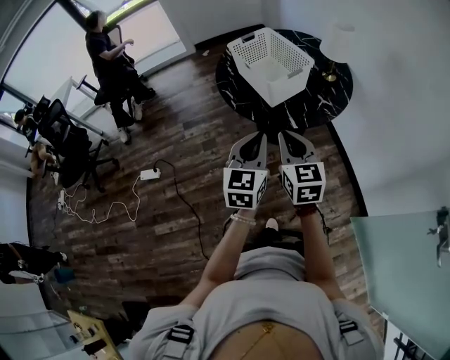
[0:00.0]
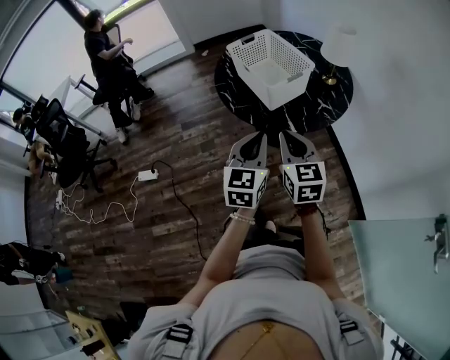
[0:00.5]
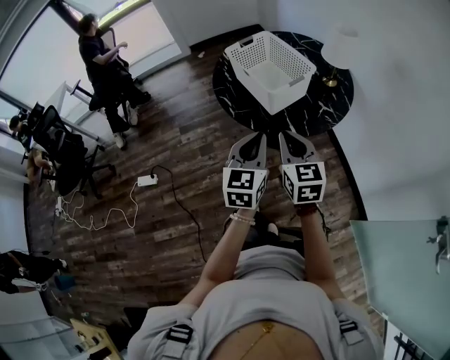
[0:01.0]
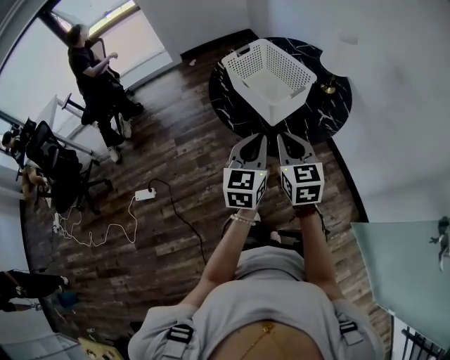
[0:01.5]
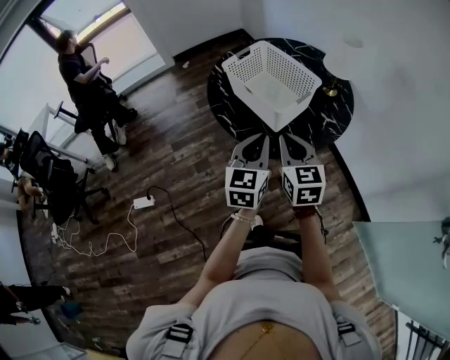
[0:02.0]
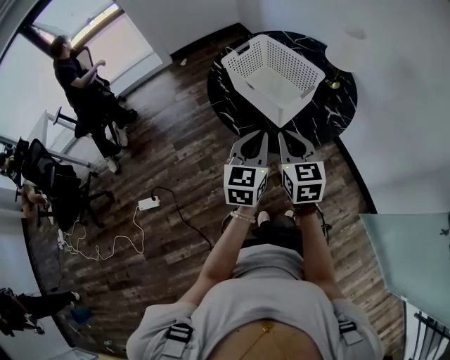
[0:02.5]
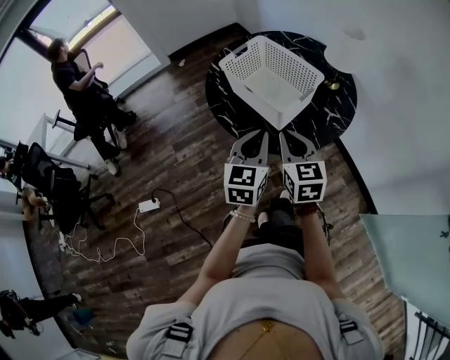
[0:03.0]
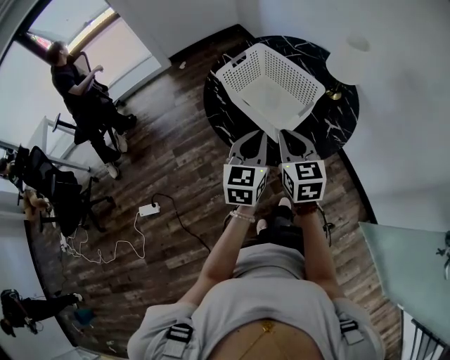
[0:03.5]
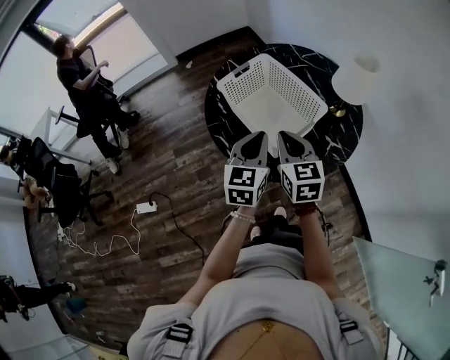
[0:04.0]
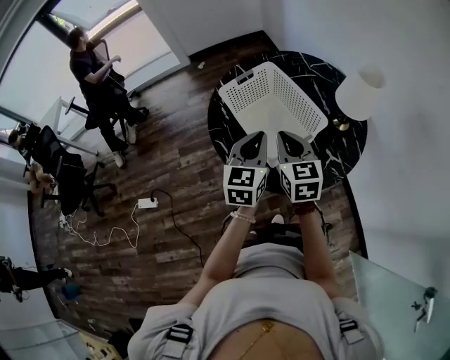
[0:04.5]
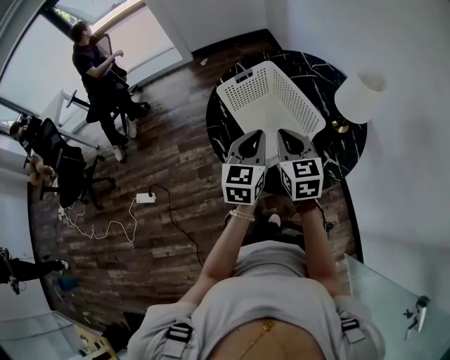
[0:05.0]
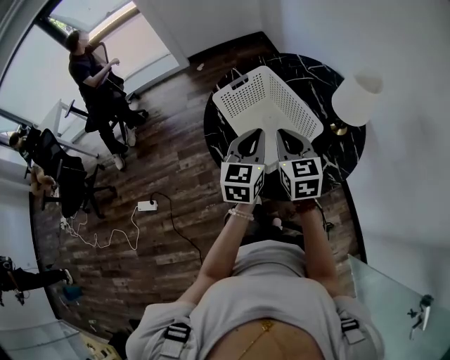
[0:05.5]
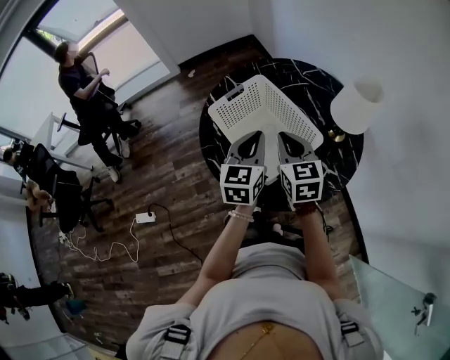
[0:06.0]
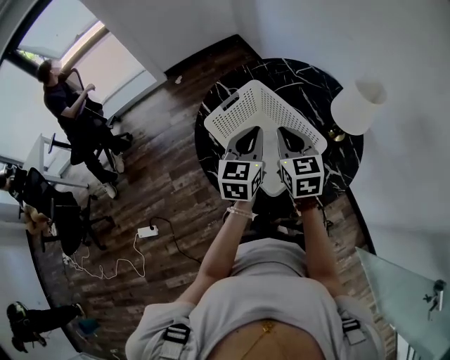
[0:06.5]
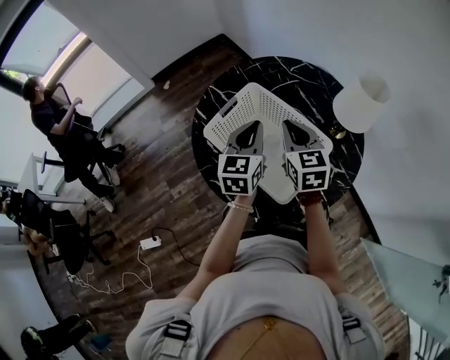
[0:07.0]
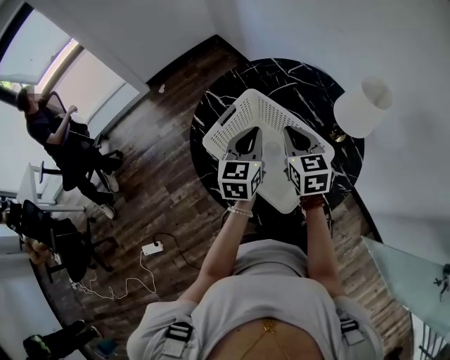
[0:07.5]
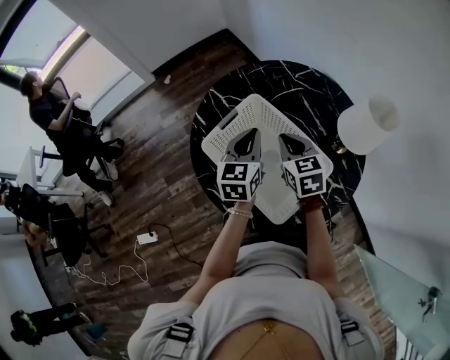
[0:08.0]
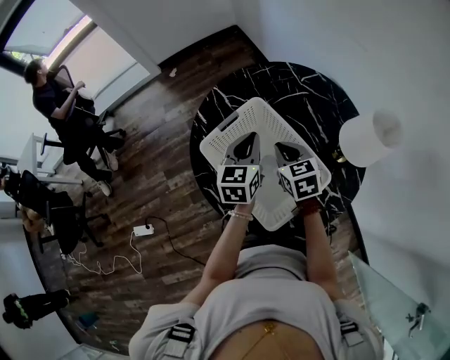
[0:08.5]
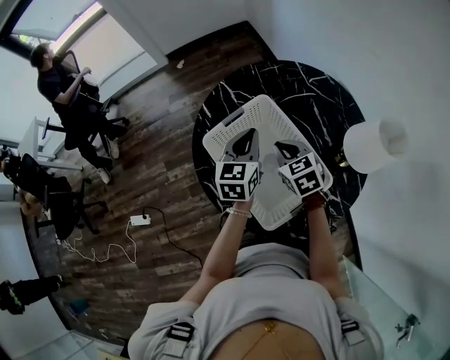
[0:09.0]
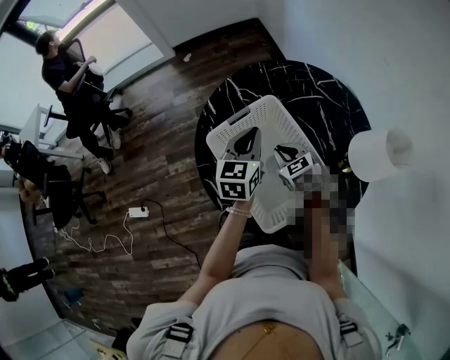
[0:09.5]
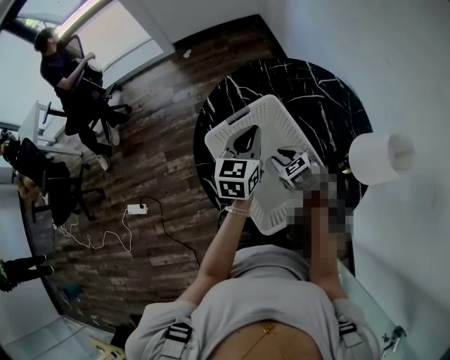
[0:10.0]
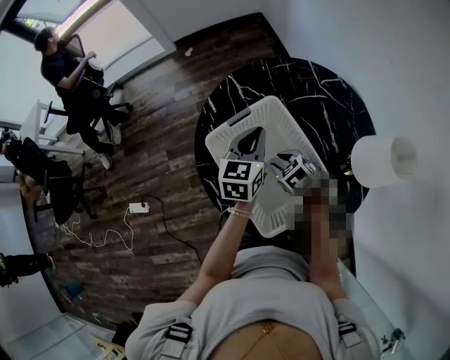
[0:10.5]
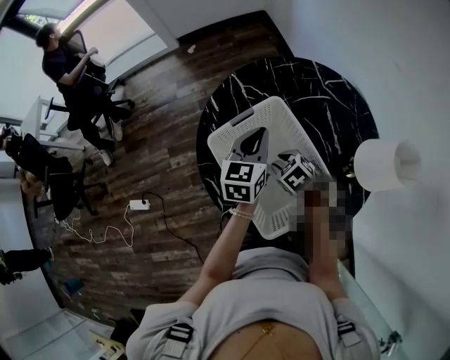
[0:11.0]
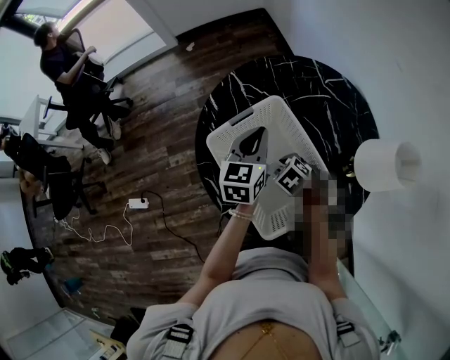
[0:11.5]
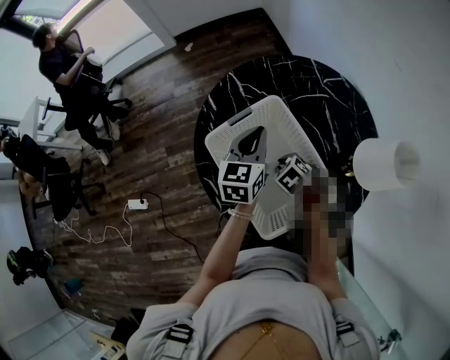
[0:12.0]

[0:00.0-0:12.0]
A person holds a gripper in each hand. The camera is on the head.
0:00.0 to 0:02.0: Both grippers move forward, approximately 15 cm.
0:02.0 to 0:04.0: The two grippers go roughly 15 cm forward.
0:04.0 to 0:06.0: Both grippers move forward, approximately 10 cm.
0:06.0 to 0:08.0: The right gripper is displaced forward and downward by some 15 cm. The left gripper shifts roughly 15 cm forward.
0:08.0 to 0:10.0: The right gripper moves downward, about 10 cm, and rotates approximately 40 degrees.
0:10.0 to 0:12.0: The right gripper moves downward, approximately 5 cm.

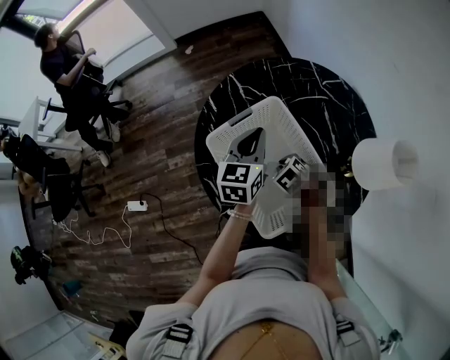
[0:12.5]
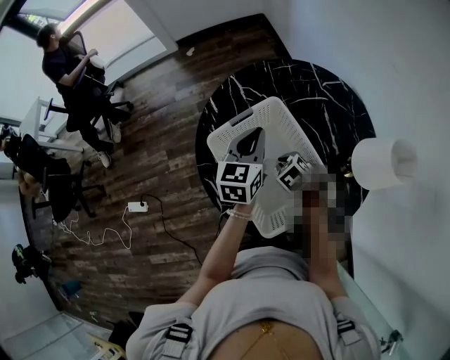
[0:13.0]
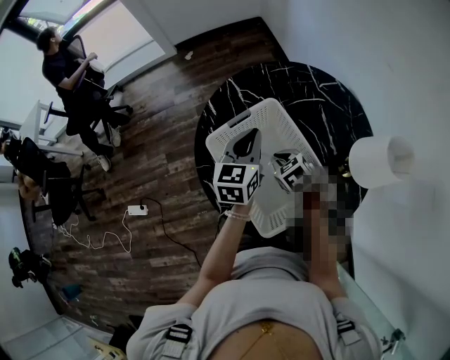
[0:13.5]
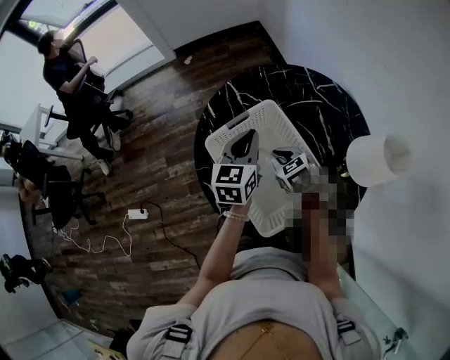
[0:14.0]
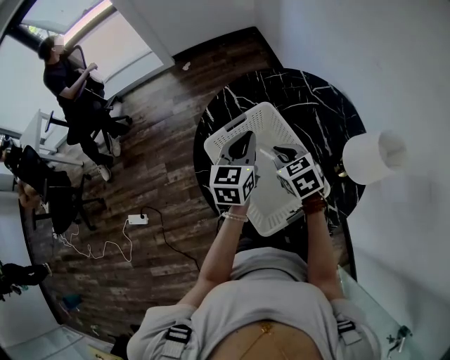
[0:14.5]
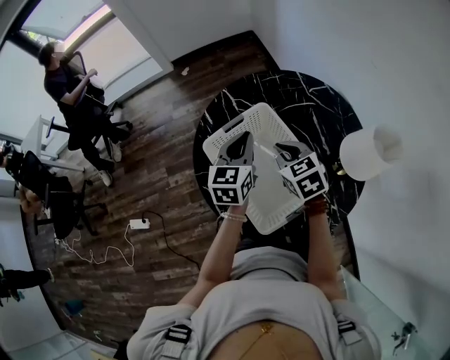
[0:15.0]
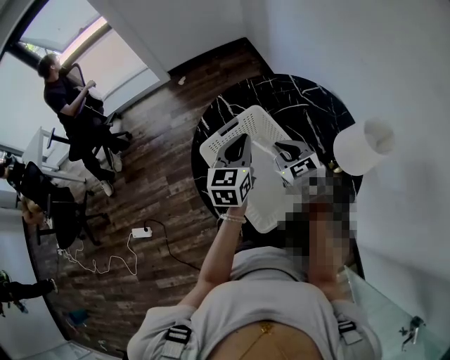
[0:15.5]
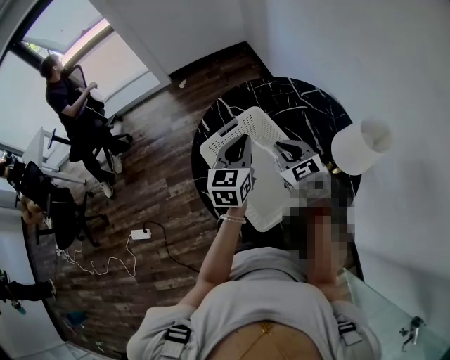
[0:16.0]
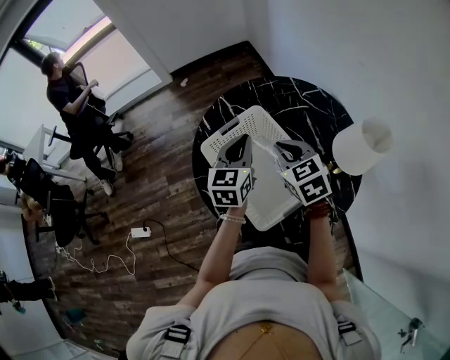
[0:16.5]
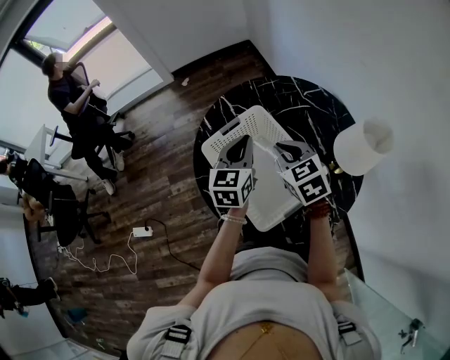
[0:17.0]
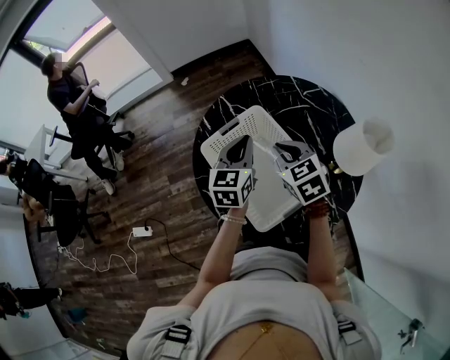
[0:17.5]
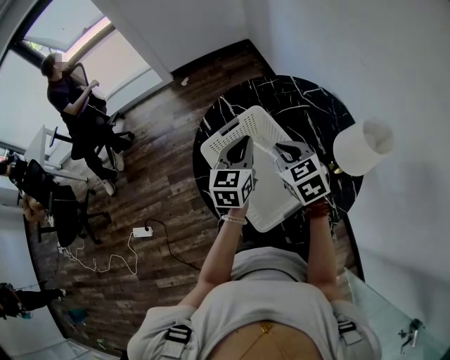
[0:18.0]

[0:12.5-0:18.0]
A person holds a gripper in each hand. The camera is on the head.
0:12.5 to 0:14.5: The right gripper is displaced upward by some 15 cm, and turns by roughly 30 degrees.
0:14.5 to 0:16.0: The right gripper goes approximately 10 cm upward.
0:16.0 to 0:18.0: Both grippers stay put.

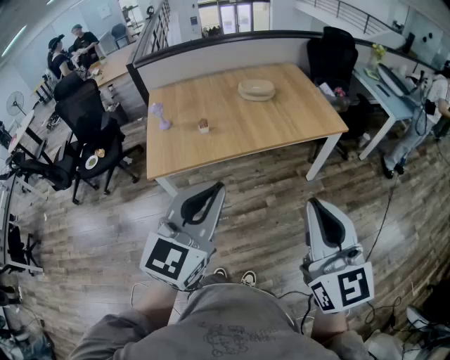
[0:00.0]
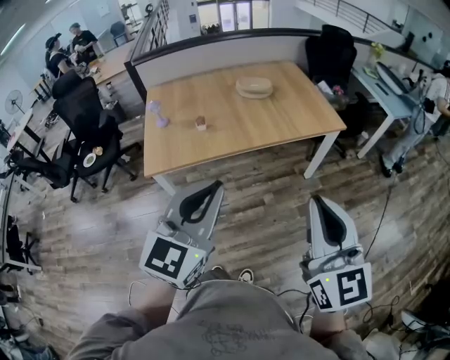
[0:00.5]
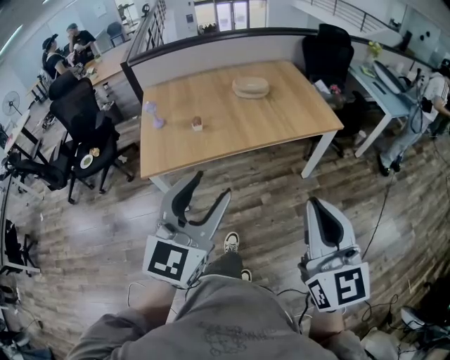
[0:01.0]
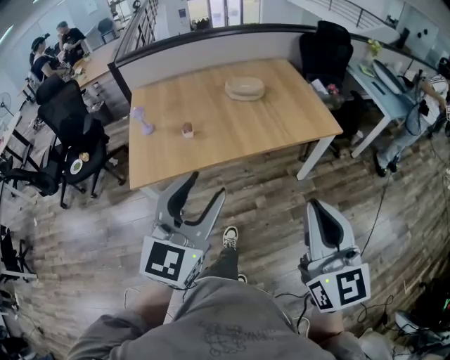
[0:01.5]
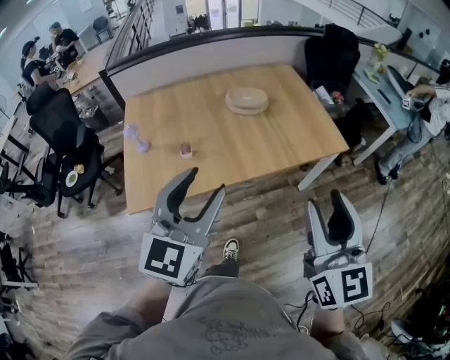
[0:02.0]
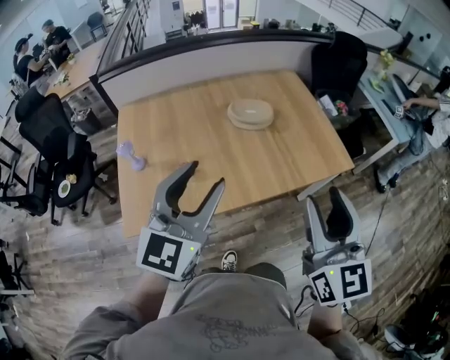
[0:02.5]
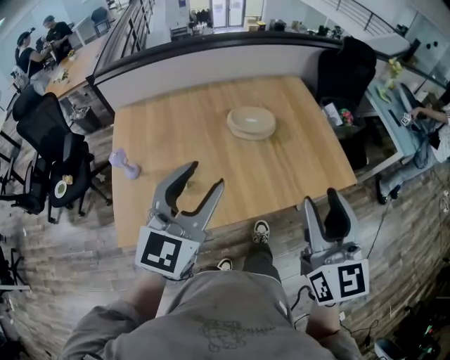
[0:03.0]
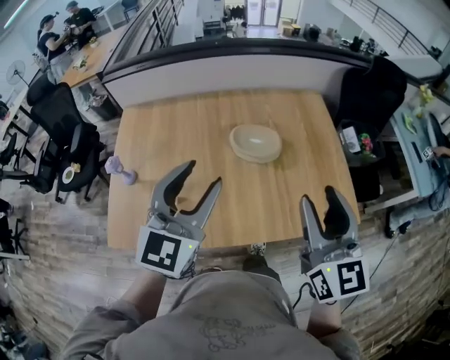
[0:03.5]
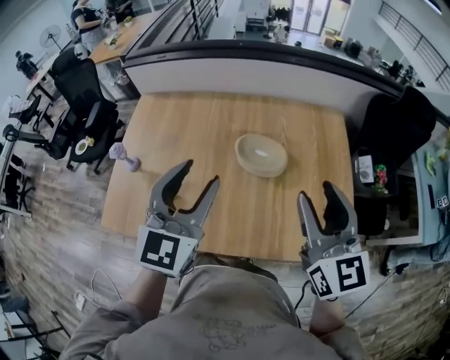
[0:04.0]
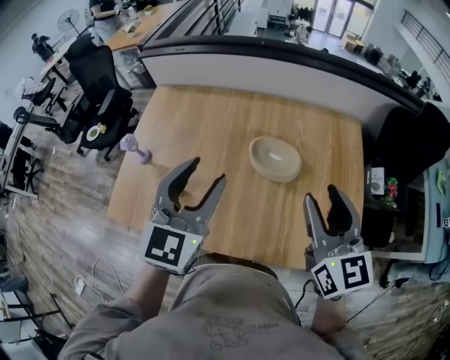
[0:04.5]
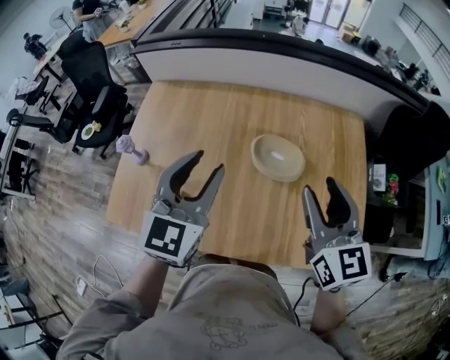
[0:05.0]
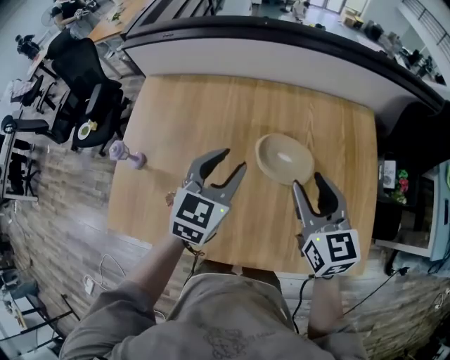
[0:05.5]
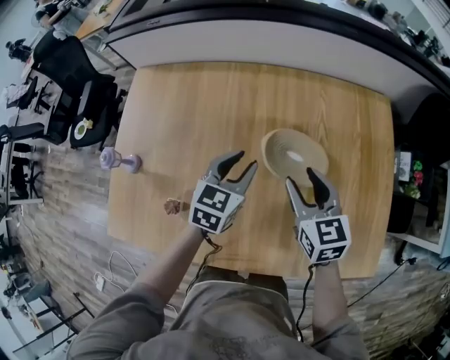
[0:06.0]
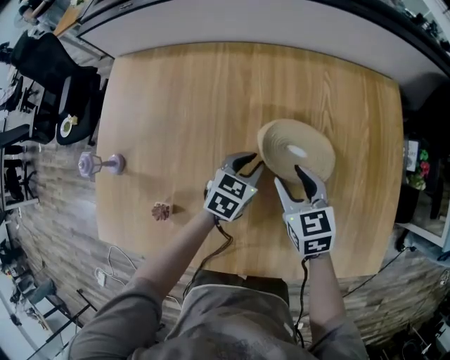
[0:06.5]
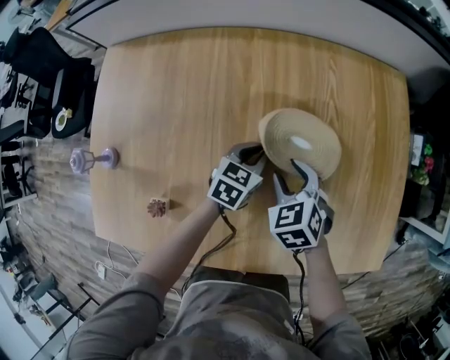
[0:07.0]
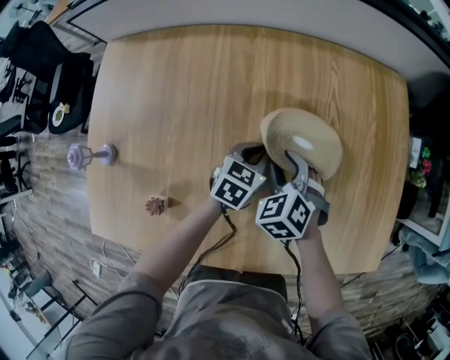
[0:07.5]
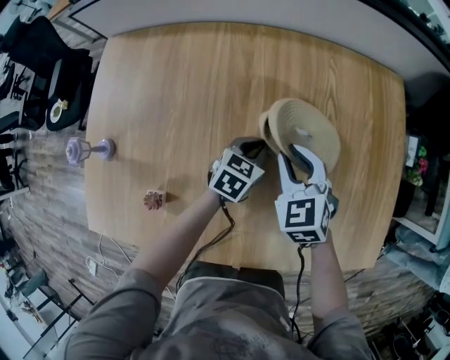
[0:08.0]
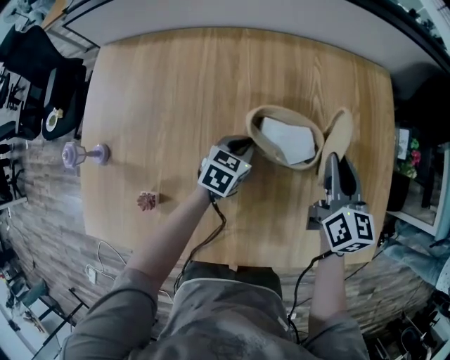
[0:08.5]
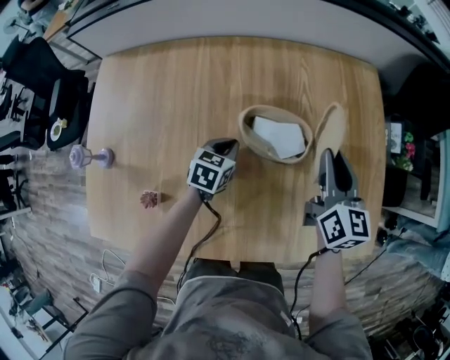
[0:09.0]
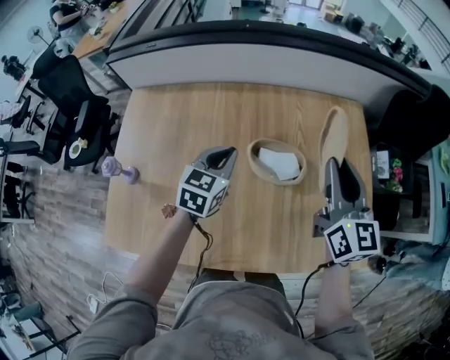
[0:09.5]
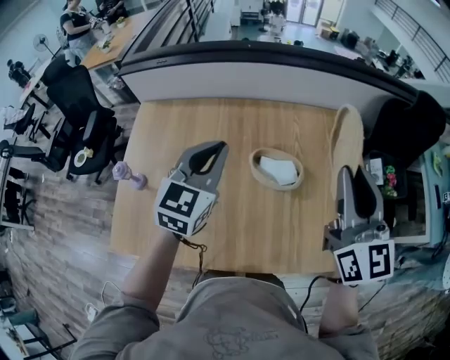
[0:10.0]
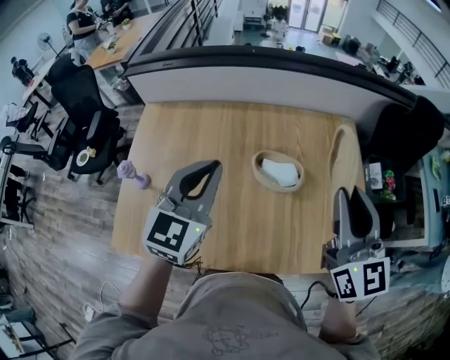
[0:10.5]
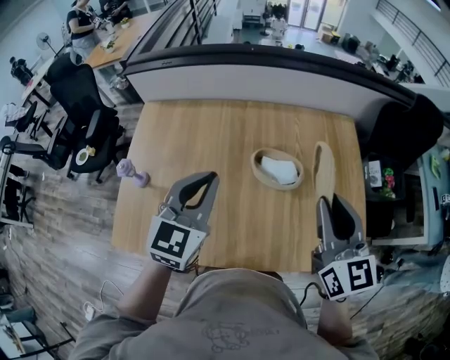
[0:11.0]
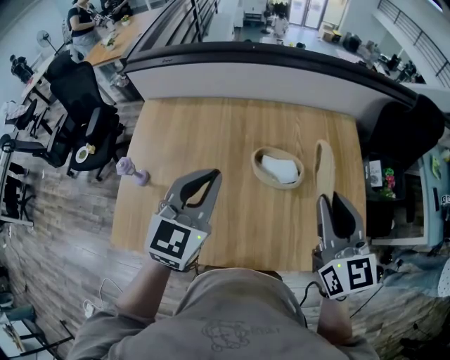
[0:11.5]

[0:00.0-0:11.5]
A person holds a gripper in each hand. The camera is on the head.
0:00.0 to 0:02.0: Both grippers move forward, approximately 25 cm. The left gripper opens its fingers. The right gripper opens up.
0:02.0 to 0:04.0: The left gripper ends up some 40 cm from where it was, and turns by roughly 20 degrees; the right gripper shifts by roughly 50 cm, and swivels some 30 degrees.
0:04.0 to 0:06.0: Both grippers travel together downward and forward, approximately 30 cm. The left gripper swivels approximately 30 degrees. Meanwhile the right gripper rotates some 30 degrees.
0:06.0 to 0:07.5: Both grippers move downward, about 15 cm. The left gripper closes its fingers. Meanwhile the right gripper swivels some 40 degrees.
0:07.5 to 0:09.5: The right gripper travels upward and to the right by some 35 cm, points its fingers roughly 50 degrees further upward, and closes. The left gripper goes some 20 cm upward.
0:09.5 to 0:11.5: The right gripper shifts approximately 15 cm backward and upward, while the left gripper travels upward and backward by about 20 cm.
